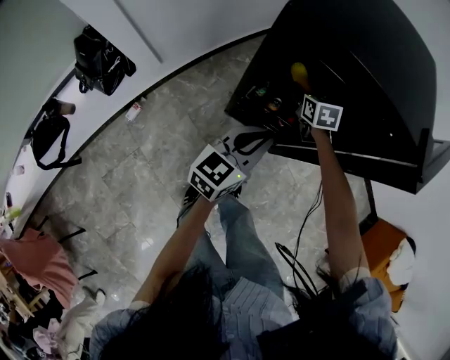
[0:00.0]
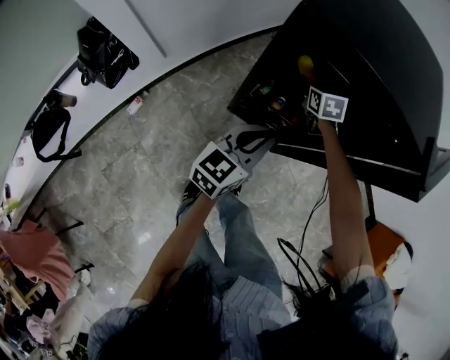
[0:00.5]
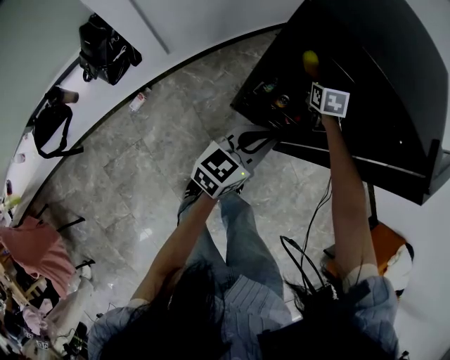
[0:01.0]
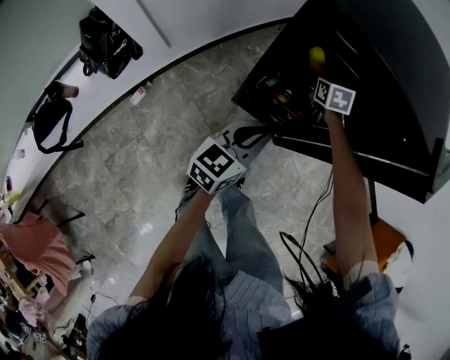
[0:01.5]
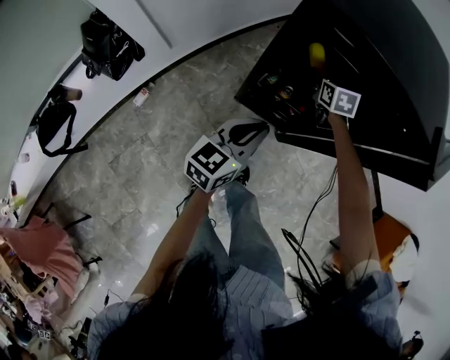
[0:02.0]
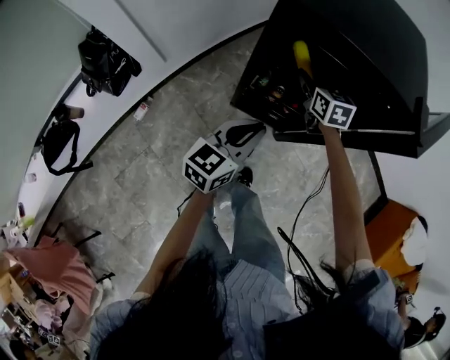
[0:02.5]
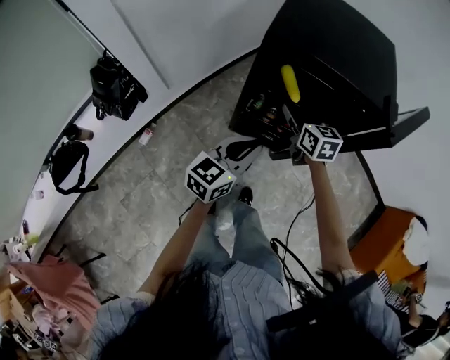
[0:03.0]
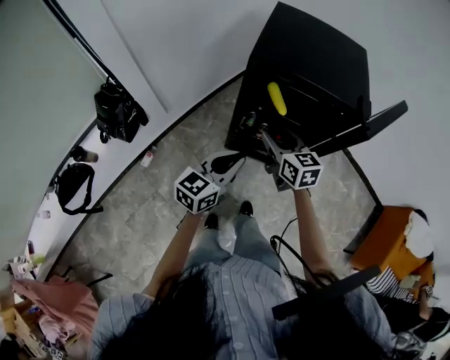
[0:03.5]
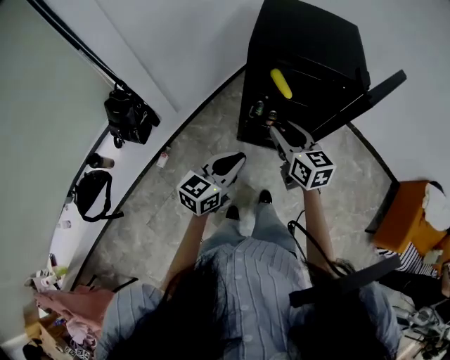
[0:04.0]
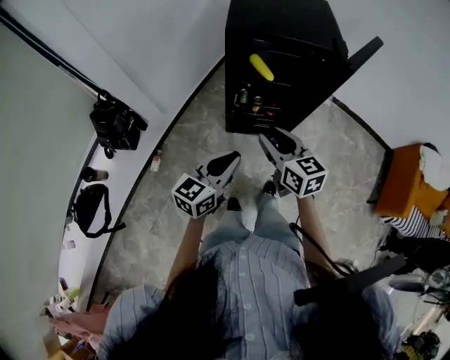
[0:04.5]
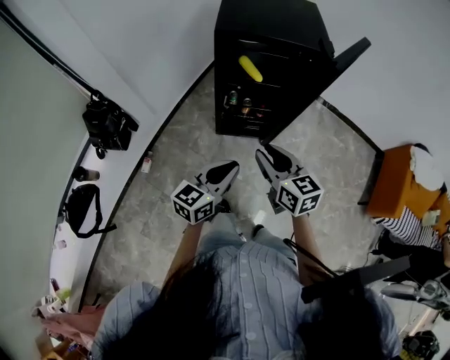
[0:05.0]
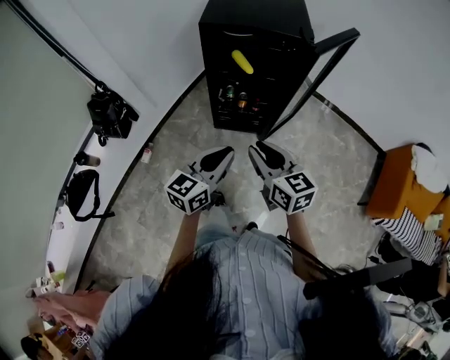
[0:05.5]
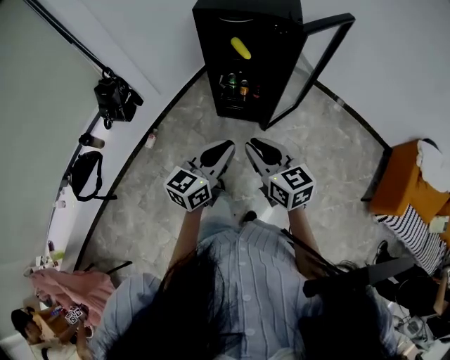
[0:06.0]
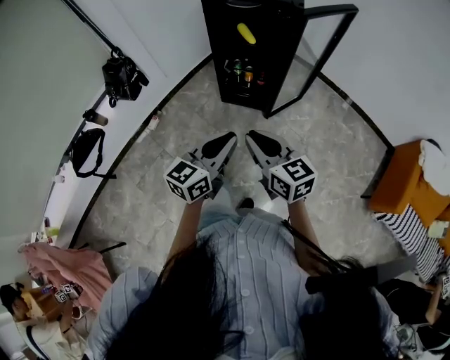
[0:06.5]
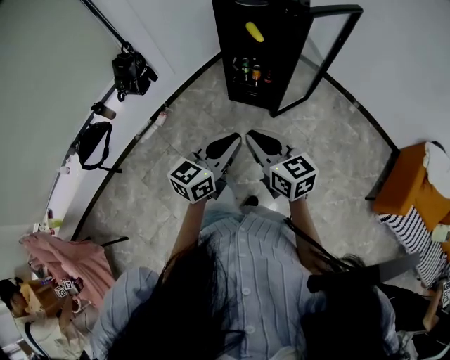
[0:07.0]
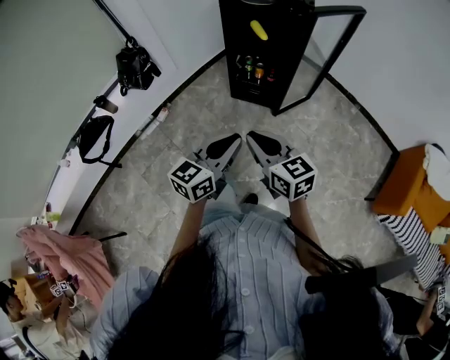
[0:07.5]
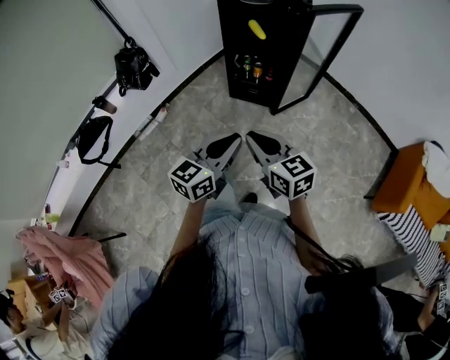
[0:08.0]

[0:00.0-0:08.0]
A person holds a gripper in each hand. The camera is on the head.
0:00.0 to 0:02.0: The grippers stay close to where they were, moving slightly.
0:02.0 to 0:04.0: The right gripper goes about 40 cm backward and upward, and rotates about 30 degrees, while the left gripper shifts approximately 20 cm backward and upward.
0:04.0 to 0:06.0: The two grippers go approximately 25 cm backward and to the right. The right gripper closes.
0:06.0 to 0:08.0: Both grippers move backward, some 15 cm.

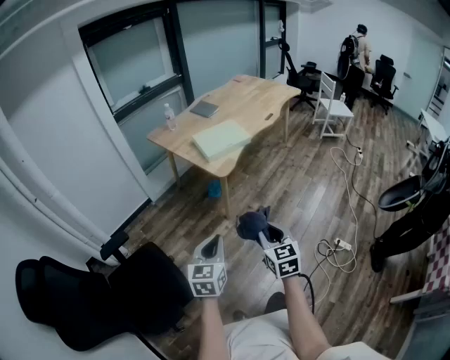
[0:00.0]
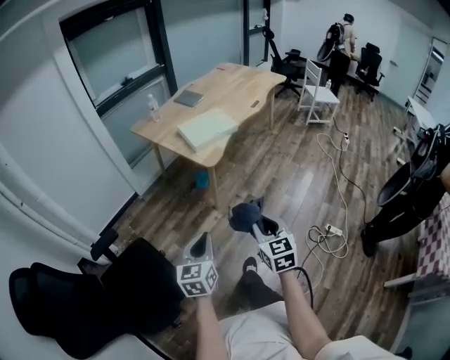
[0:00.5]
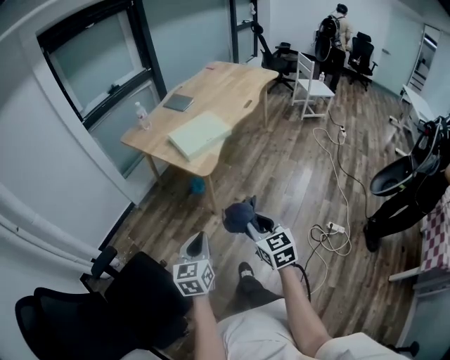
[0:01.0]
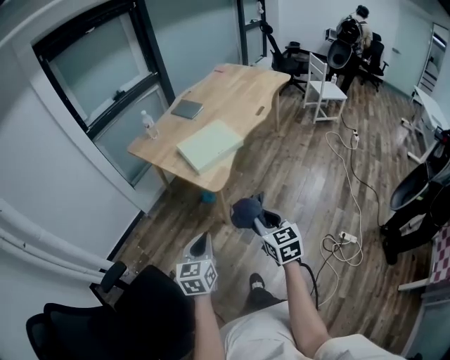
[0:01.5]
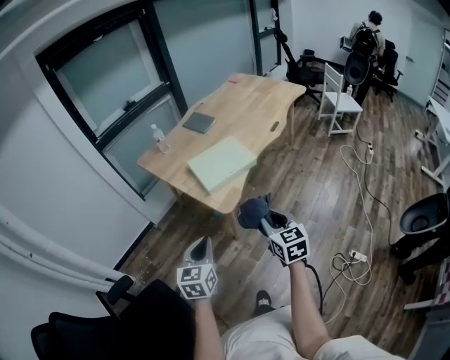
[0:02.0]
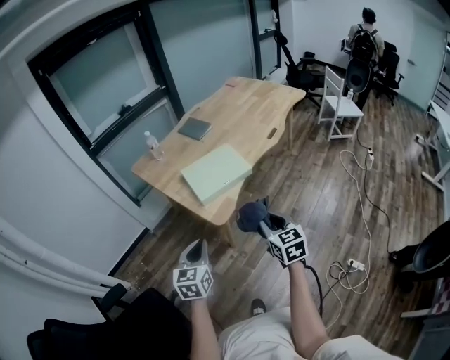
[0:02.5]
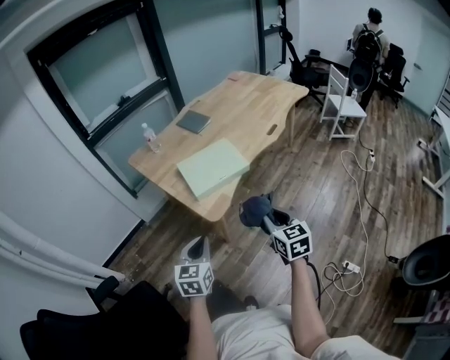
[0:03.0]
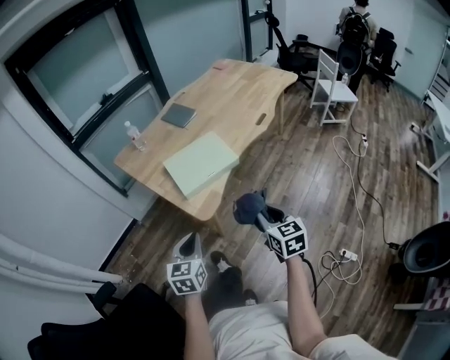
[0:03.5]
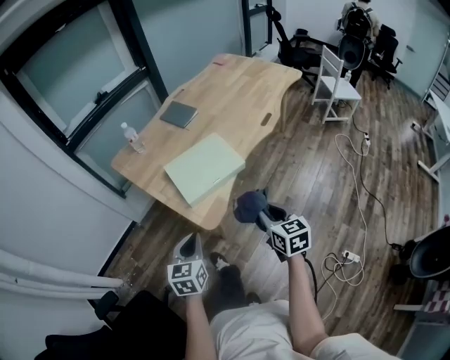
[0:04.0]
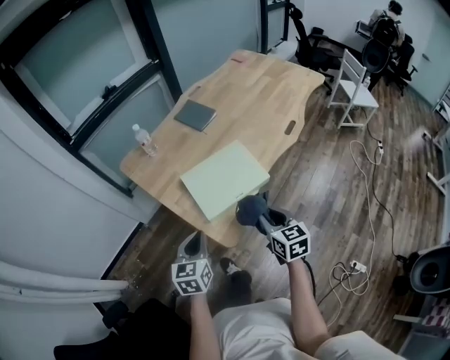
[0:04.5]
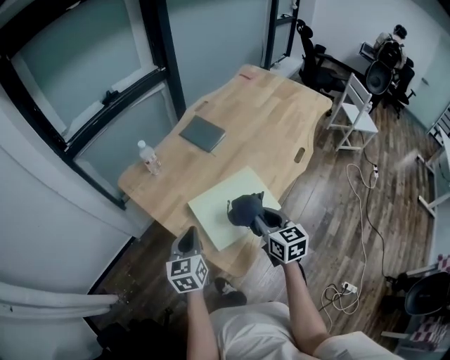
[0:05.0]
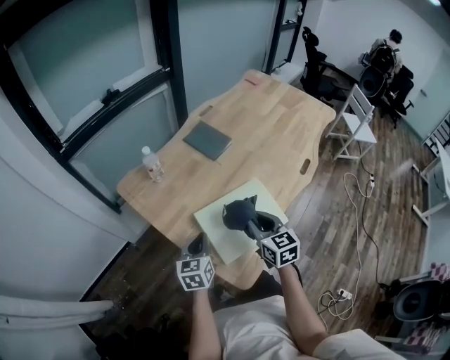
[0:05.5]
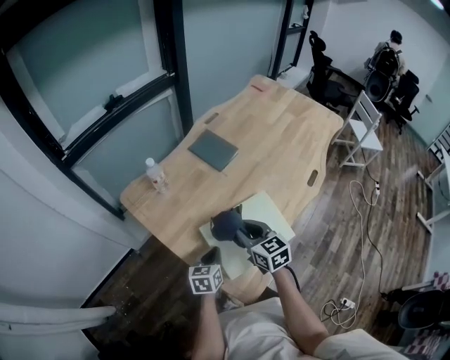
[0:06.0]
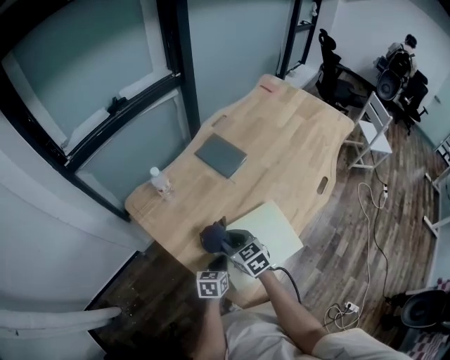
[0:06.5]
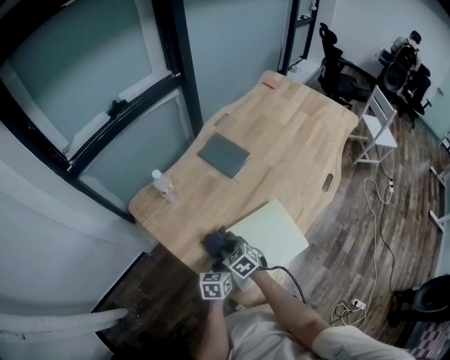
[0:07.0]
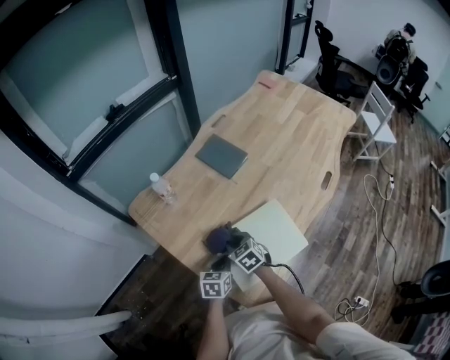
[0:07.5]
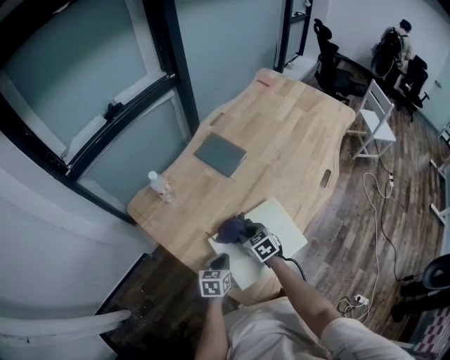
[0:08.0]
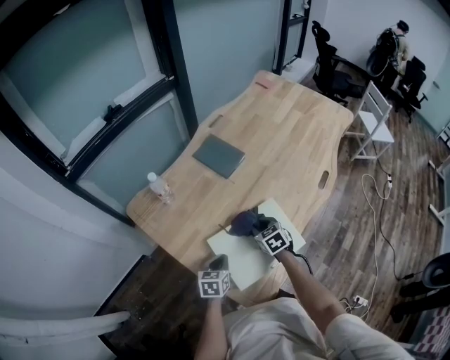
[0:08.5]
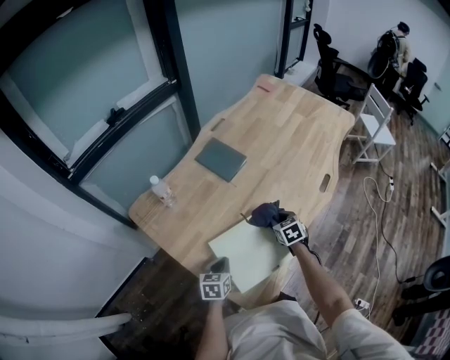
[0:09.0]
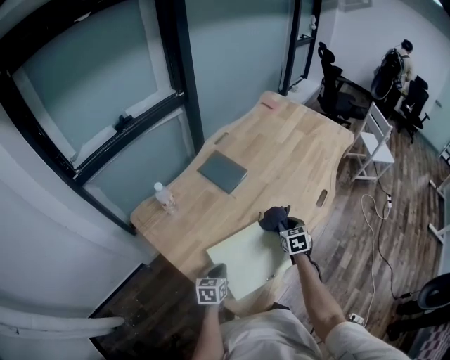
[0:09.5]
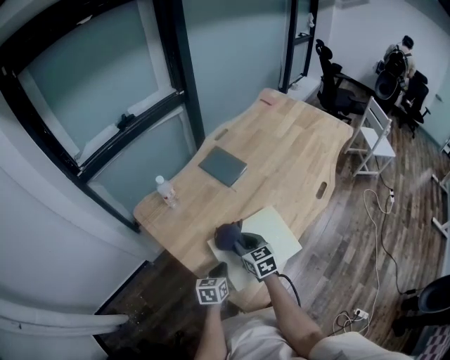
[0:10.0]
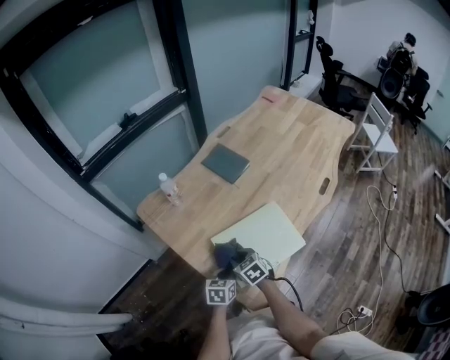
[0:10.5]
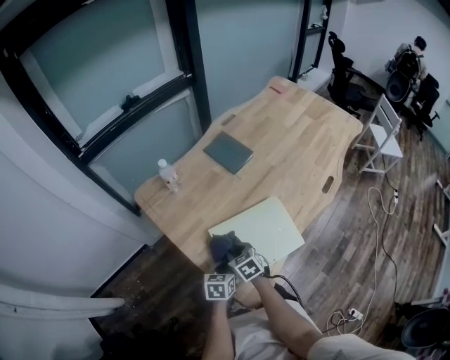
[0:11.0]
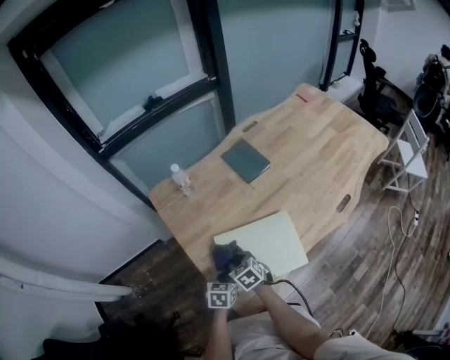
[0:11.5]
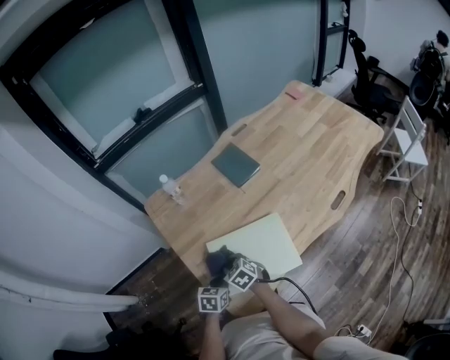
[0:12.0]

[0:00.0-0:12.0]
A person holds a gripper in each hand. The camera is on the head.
0:00.0 to 0:02.0: Both grippers travel together forward, about 30 cm.
0:02.0 to 0:04.0: The right gripper travels forward, to the right and downward by approximately 20 cm, while the left gripper goes roughly 20 cm forward and downward.
0:04.0 to 0:06.0: The left gripper goes roughly 35 cm forward. Meanwhile the right gripper shifts about 40 cm forward and to the left.
0:06.0 to 0:08.0: The right gripper travels downward and forward by approximately 15 cm, and changes its angle by approximately 20 degrees.
0:08.0 to 0:10.0: The right gripper travels upward by about 10 cm, and reaches roughly 20 cm to the right, then returns.
0:10.0 to 0:12.0: The right gripper heads downward and backward, covering approximately 10 cm, and turns by about 40 degrees.

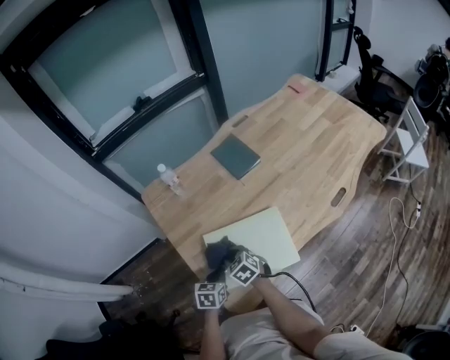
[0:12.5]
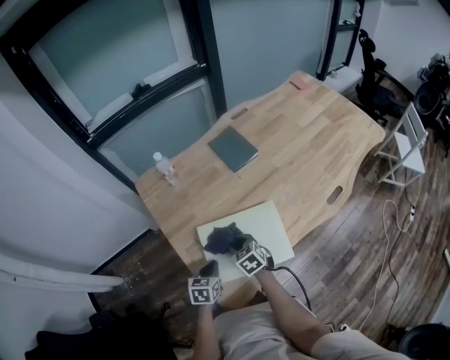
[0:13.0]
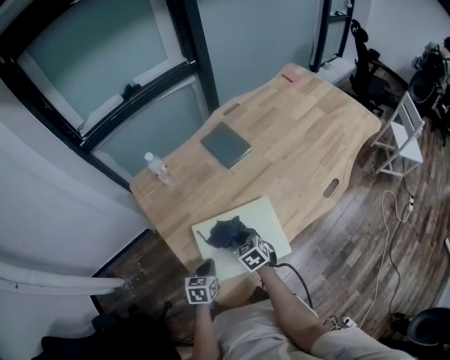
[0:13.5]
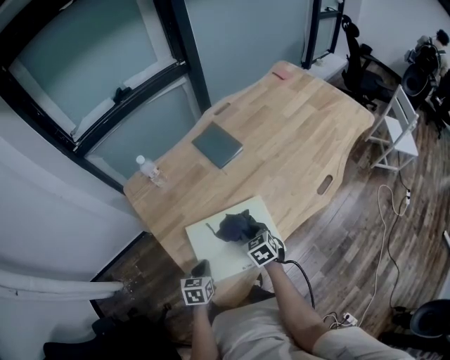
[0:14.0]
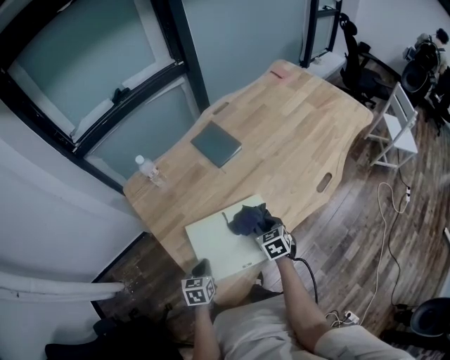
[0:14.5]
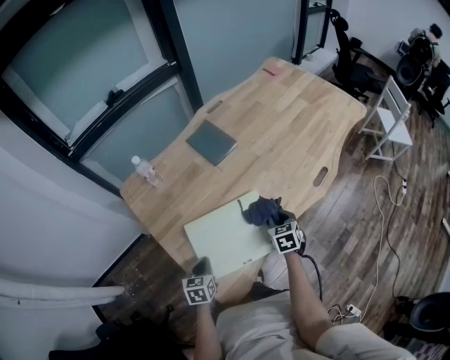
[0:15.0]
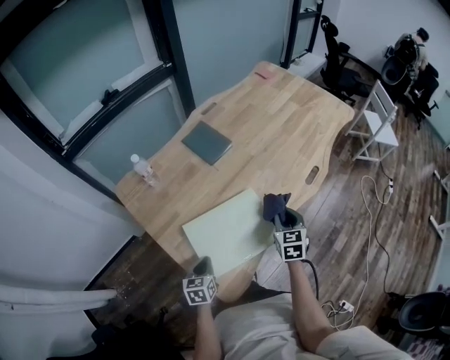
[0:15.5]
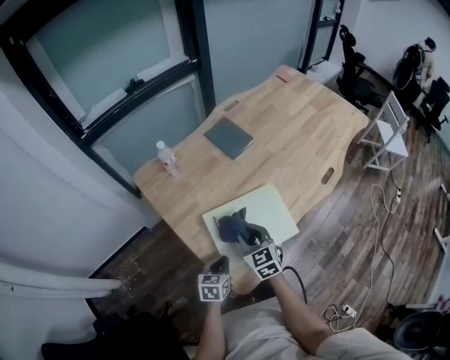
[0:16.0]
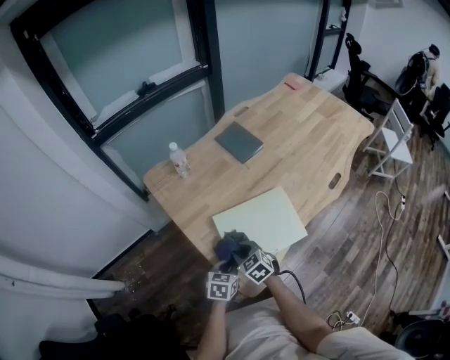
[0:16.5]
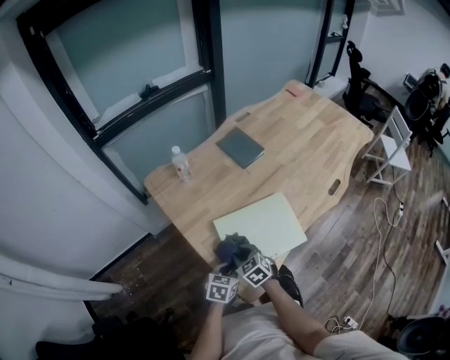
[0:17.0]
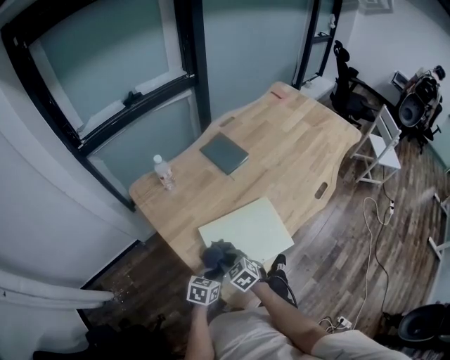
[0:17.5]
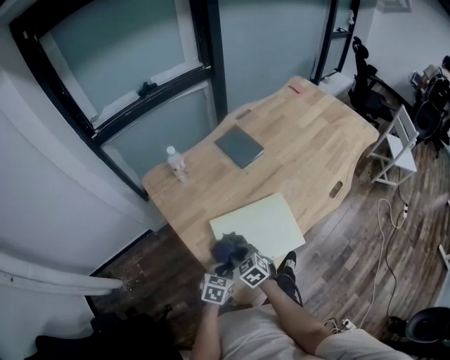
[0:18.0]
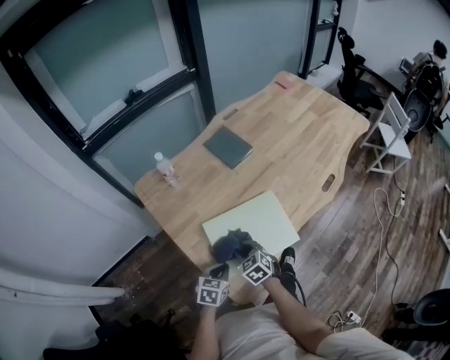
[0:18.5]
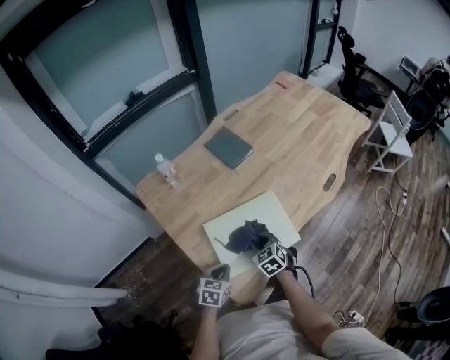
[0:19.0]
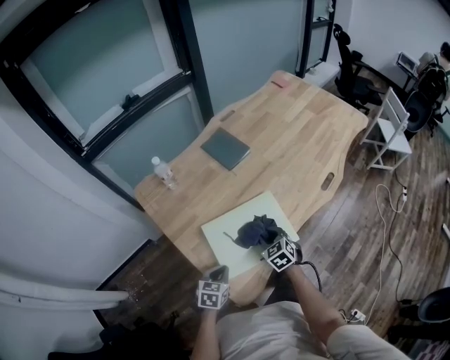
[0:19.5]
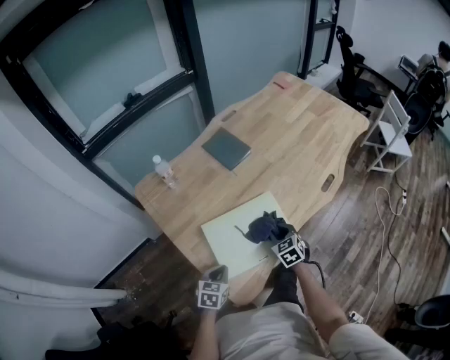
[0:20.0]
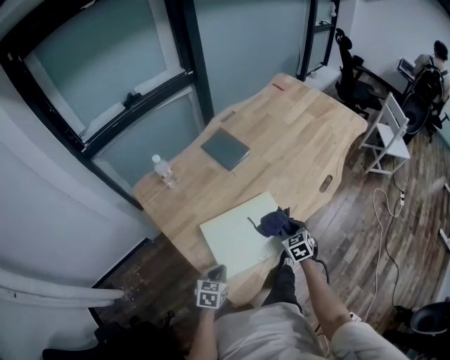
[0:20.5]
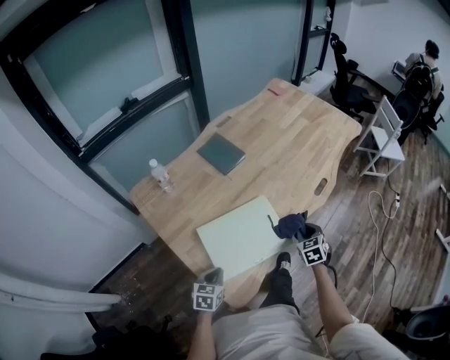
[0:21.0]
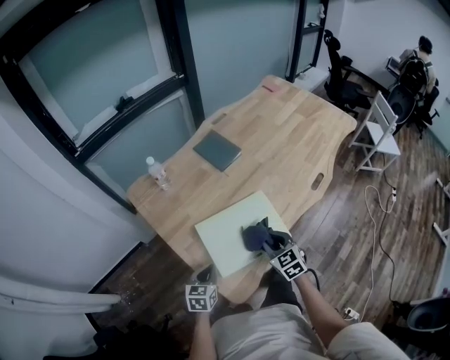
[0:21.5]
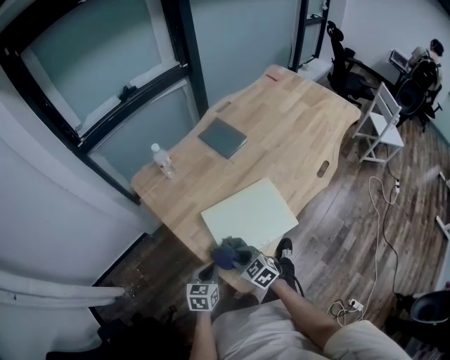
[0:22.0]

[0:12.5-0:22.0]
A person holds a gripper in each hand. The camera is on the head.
0:12.5 to 0:14.5: The right gripper travels to the right by about 20 cm, and turns by roughly 30 degrees.
0:14.5 to 0:16.5: The right gripper travels to the left and backward by roughly 25 cm, and rotates roughly 20 degrees. The left gripper moves backward, roughly 5 cm.
0:16.5 to 0:18.0: The grippers make only small movements.
0:18.0 to 0:20.0: The right gripper heads to the right, covering some 20 cm.
0:20.0 to 0:22.0: The left gripper ends up about 5 cm from where it was; the right gripper shifts by some 25 cm, and rotates some 20 degrees.
